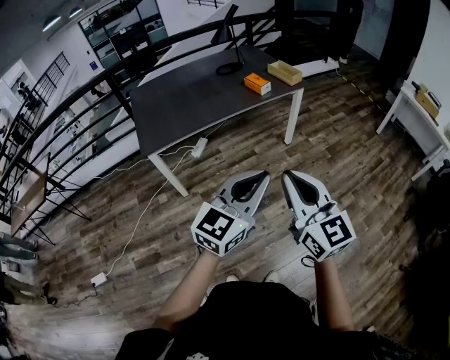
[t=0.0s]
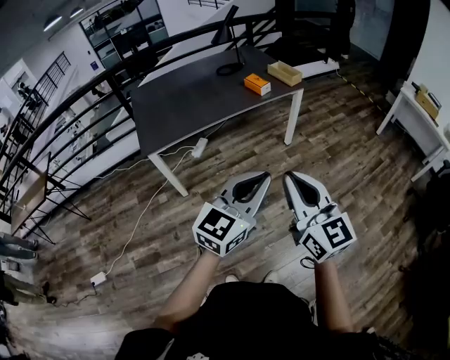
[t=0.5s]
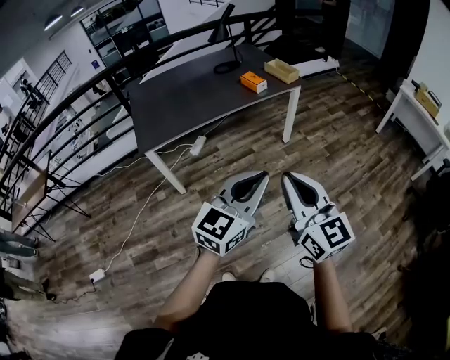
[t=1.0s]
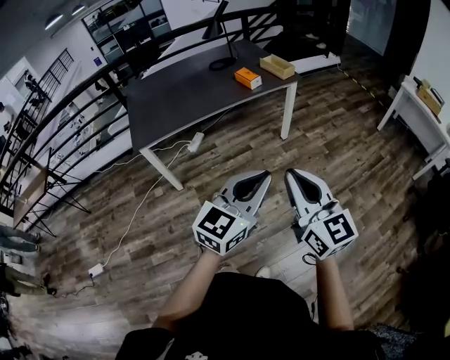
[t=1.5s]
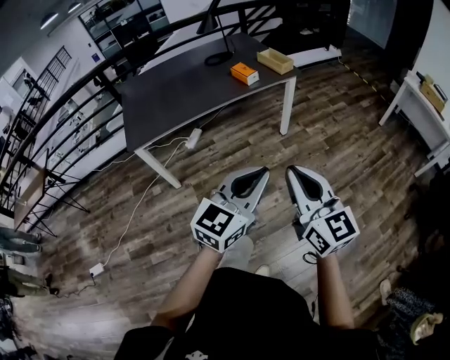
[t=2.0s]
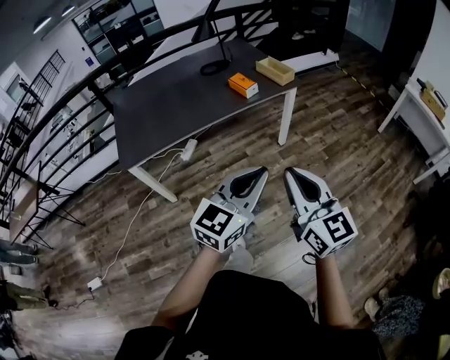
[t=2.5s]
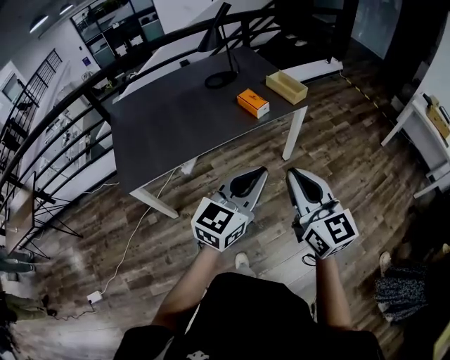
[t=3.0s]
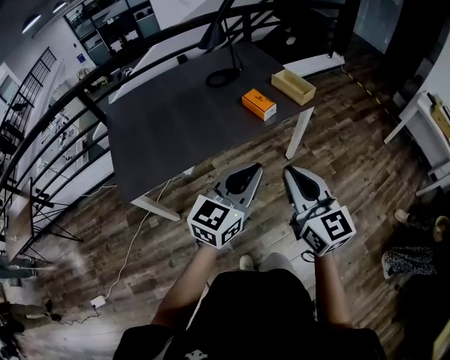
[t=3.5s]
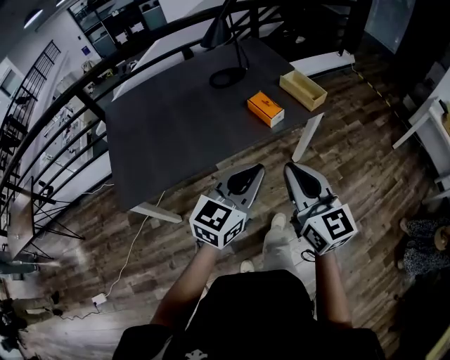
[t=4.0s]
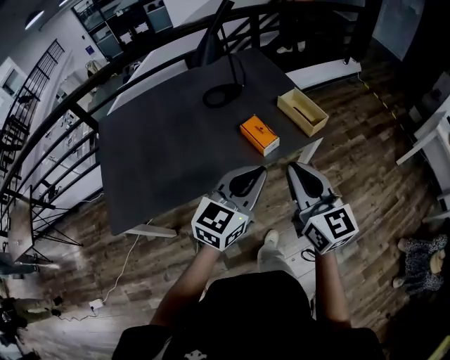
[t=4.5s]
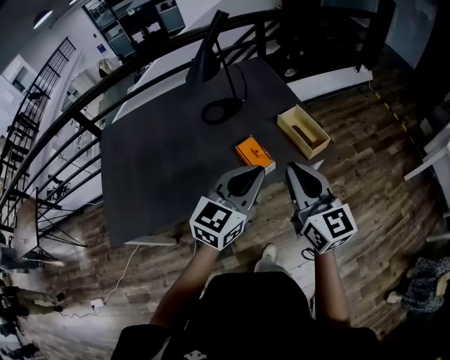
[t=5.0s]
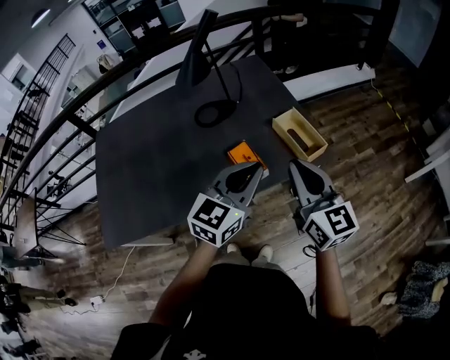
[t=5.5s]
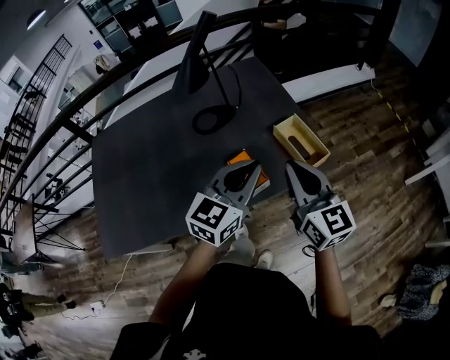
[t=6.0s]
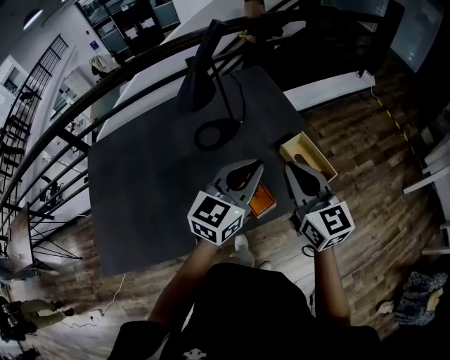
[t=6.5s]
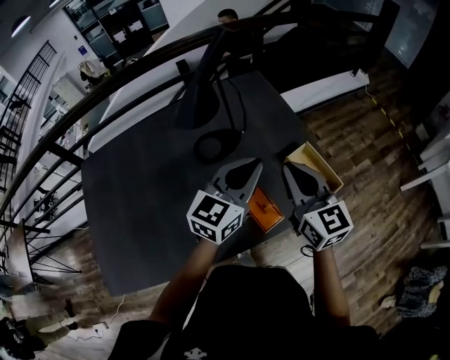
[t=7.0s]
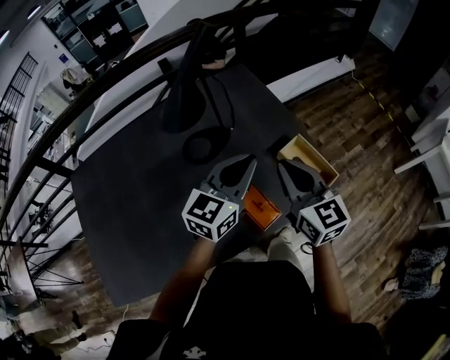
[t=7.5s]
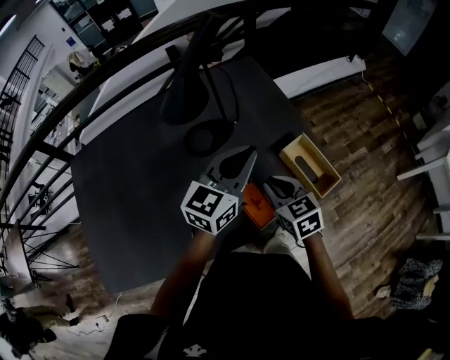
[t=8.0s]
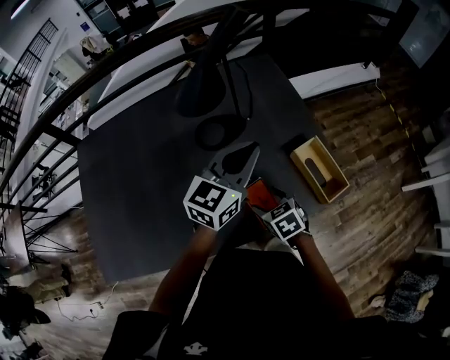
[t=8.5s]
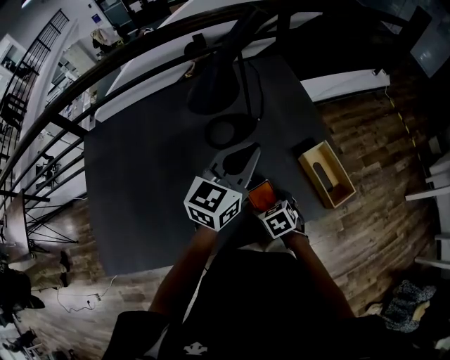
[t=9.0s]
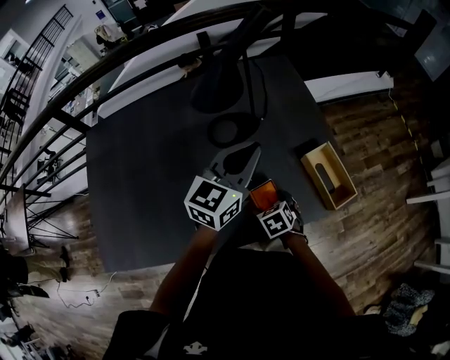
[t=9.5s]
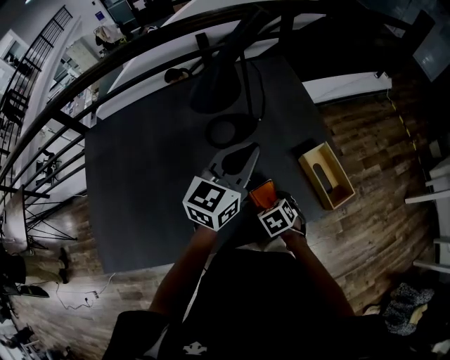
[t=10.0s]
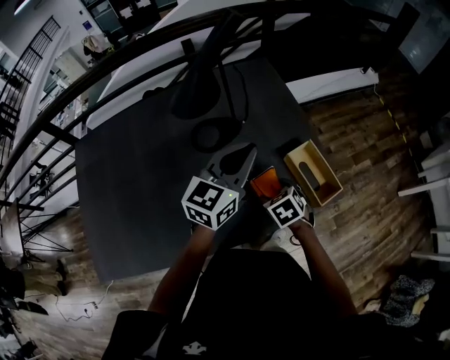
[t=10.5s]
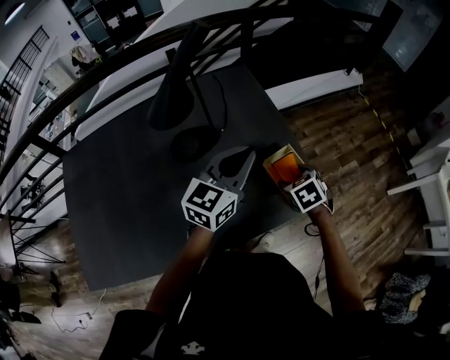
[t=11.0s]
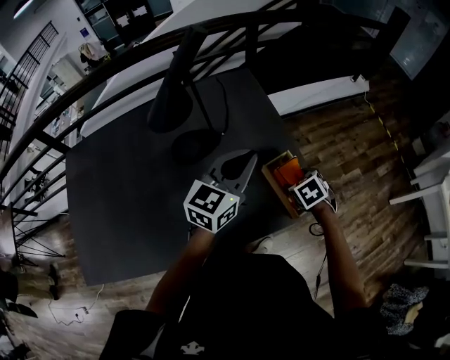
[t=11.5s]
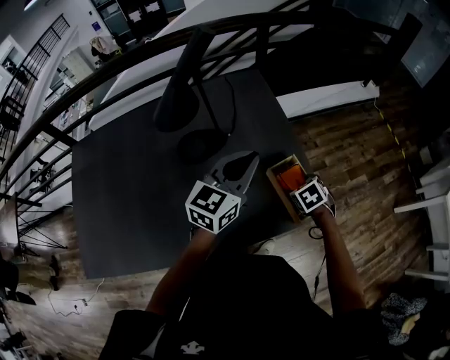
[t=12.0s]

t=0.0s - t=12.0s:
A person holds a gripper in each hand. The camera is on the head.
t=0.0s - t=2.0s: The two grippers go about 10 cm to the right.
t=2.0s - t=4.0s: The left gripper travels forward and to the left by roughly 40 cm, while the right gripper is displaced forward by approximately 35 cm.
t=4.0s - t=6.0s: Both grippers travel together forward, some 30 cm.
t=6.0s - t=8.0s: The right gripper shifts about 20 cm downward, forward and to the left, and angles its fingers downward, by roughly 30 degrees; the left gripper is displaced forward by about 15 cm.
t=8.0s - t=10.0s: The left gripper is displaced to the left by about 5 cm. Meanwhile the right gripper shifts approximately 15 cm downward, angles its fingers downward, by roughly 30 degrees, and opens.
t=10.0s - t=12.0s: The left gripper shifts roughly 10 cm to the right, while the right gripper goes roughly 25 cm to the right and forward.

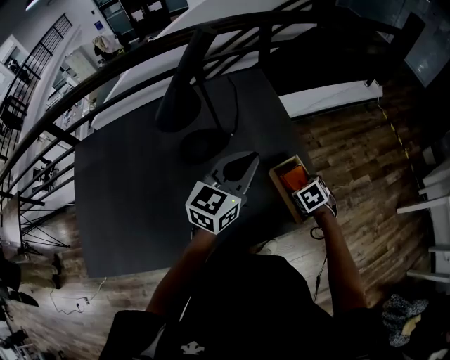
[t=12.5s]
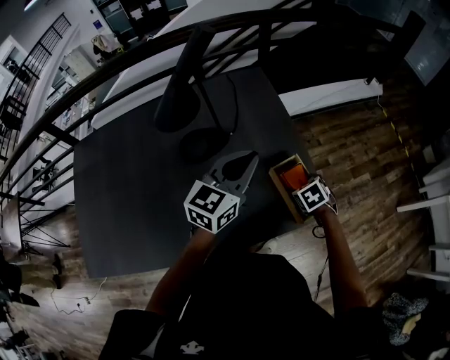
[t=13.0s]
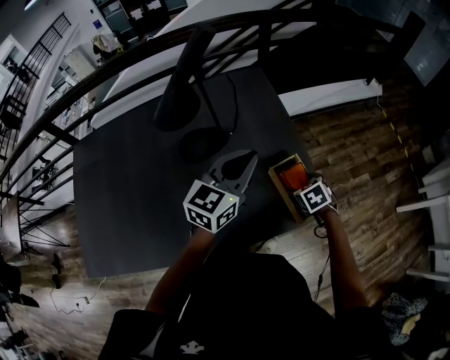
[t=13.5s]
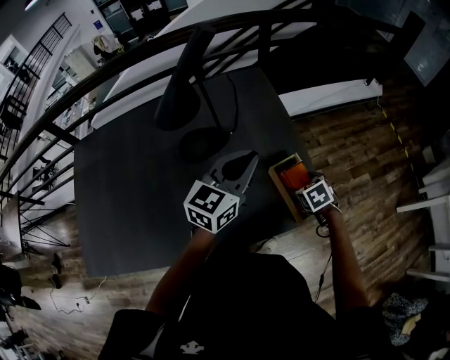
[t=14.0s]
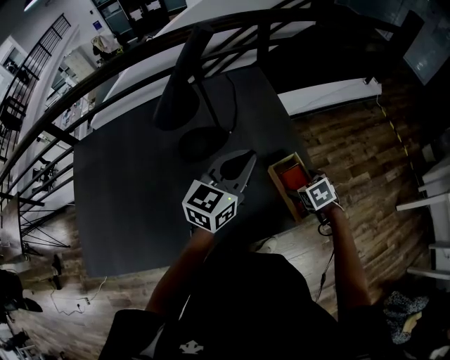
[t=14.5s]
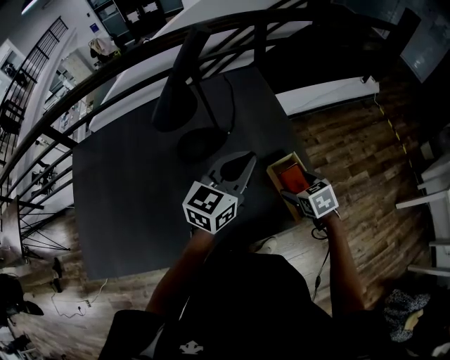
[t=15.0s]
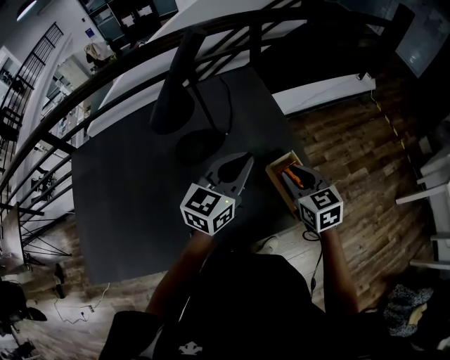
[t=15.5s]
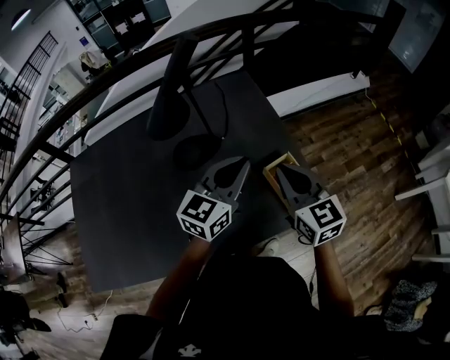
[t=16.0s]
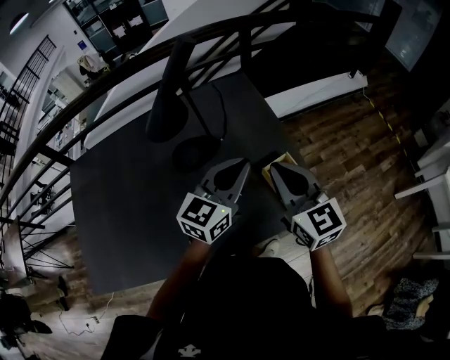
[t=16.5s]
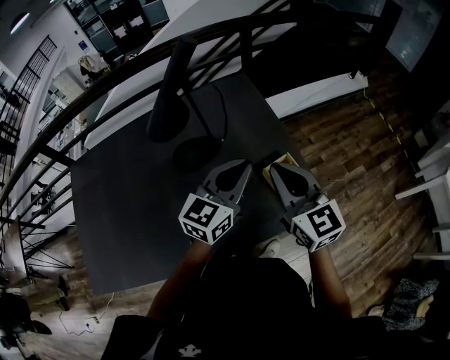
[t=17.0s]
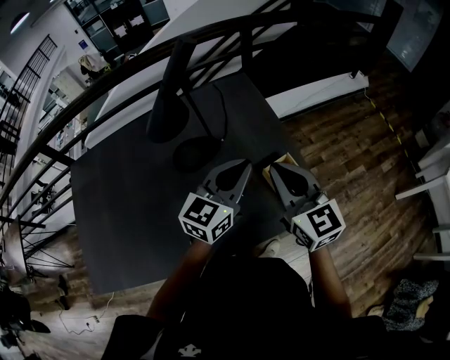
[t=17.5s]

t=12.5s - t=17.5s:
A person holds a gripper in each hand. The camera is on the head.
t=12.5s - t=15.0s: The right gripper shifts about 5 cm upward.
t=15.0s - t=17.5s: The right gripper shifts about 20 cm upward, angles its fingers upward, by some 50 degrees, and closes.

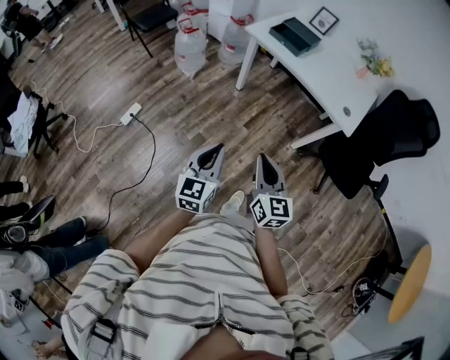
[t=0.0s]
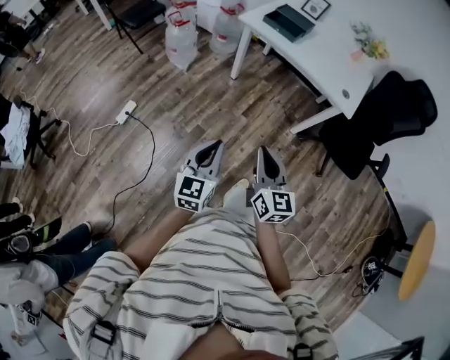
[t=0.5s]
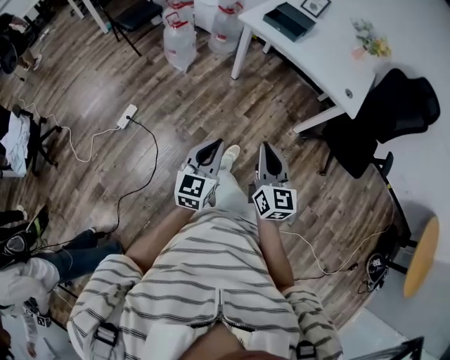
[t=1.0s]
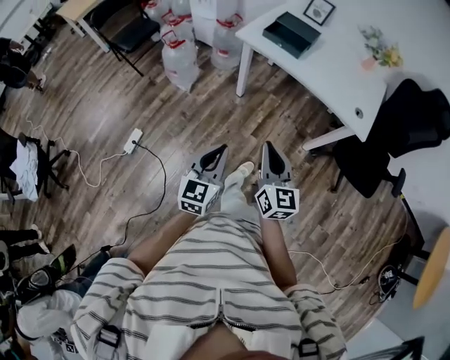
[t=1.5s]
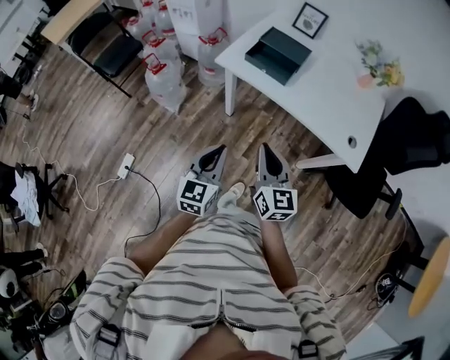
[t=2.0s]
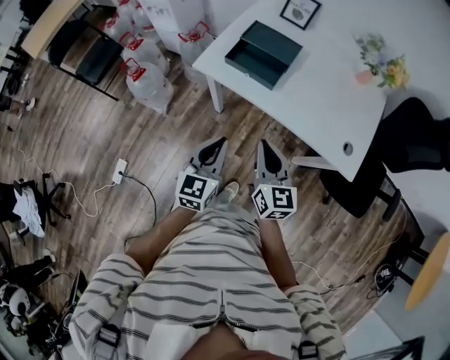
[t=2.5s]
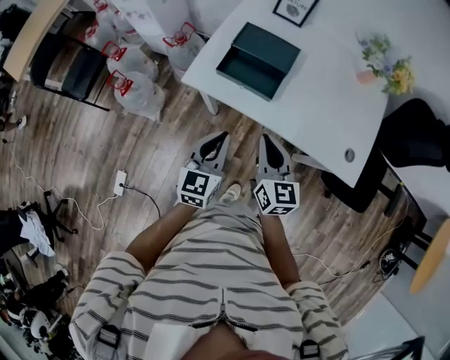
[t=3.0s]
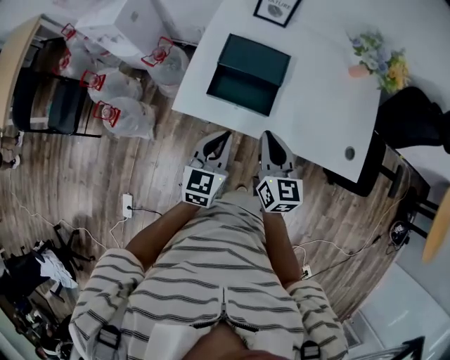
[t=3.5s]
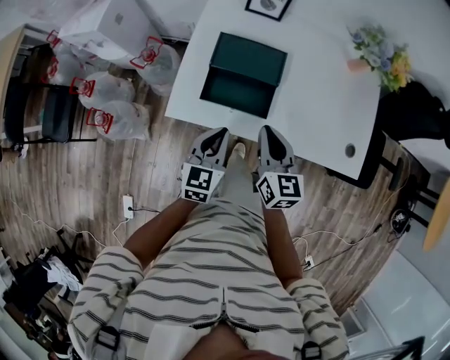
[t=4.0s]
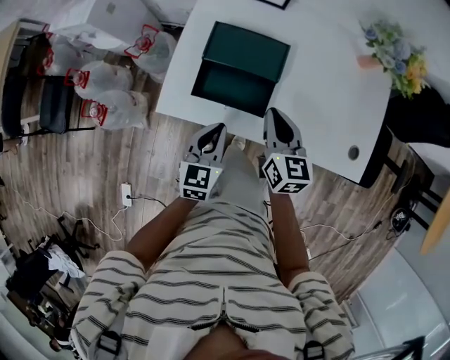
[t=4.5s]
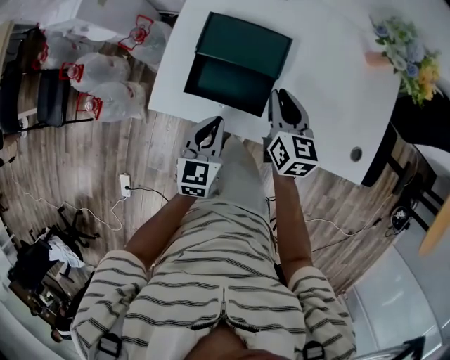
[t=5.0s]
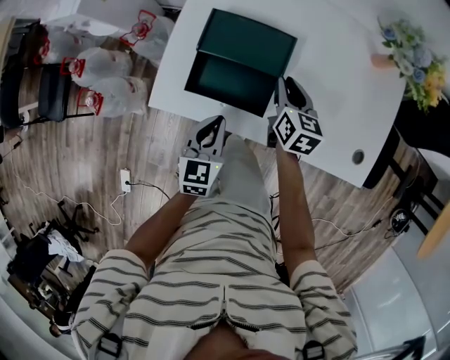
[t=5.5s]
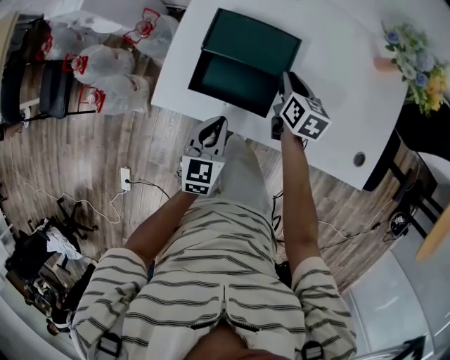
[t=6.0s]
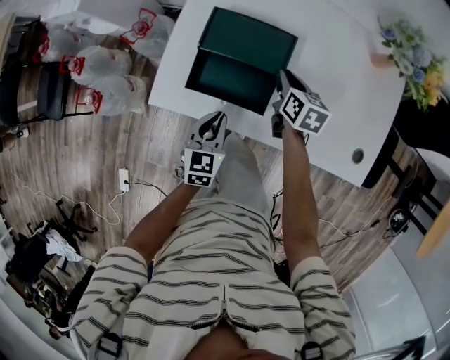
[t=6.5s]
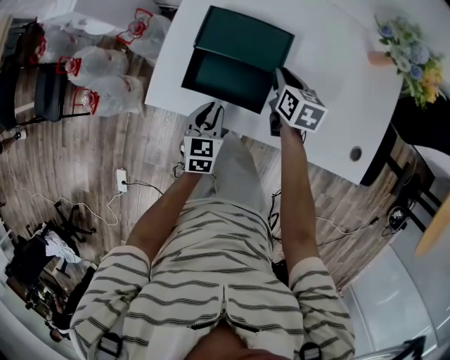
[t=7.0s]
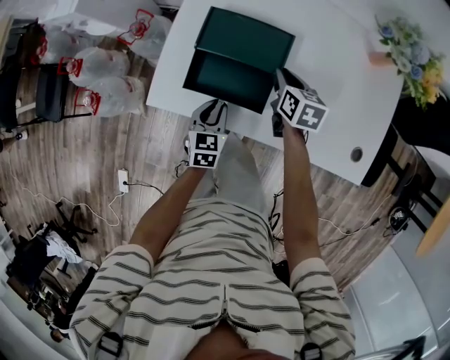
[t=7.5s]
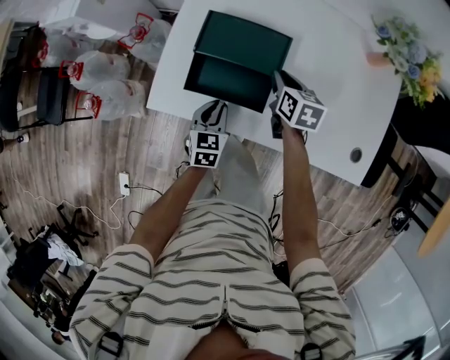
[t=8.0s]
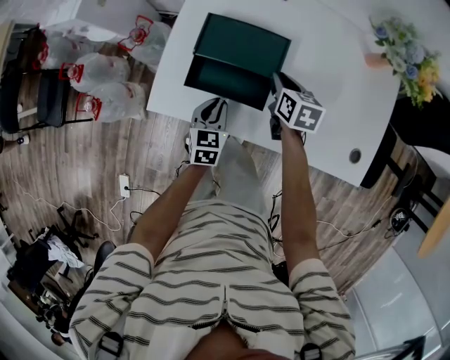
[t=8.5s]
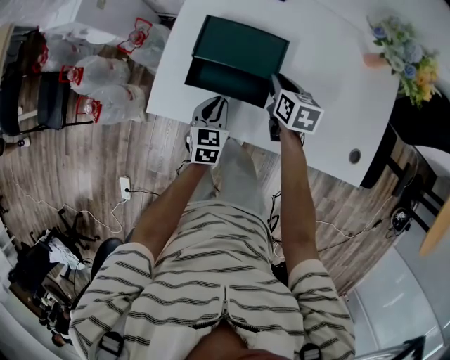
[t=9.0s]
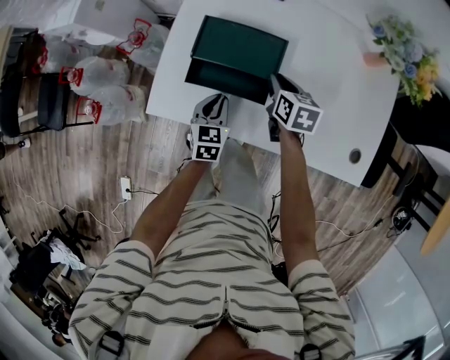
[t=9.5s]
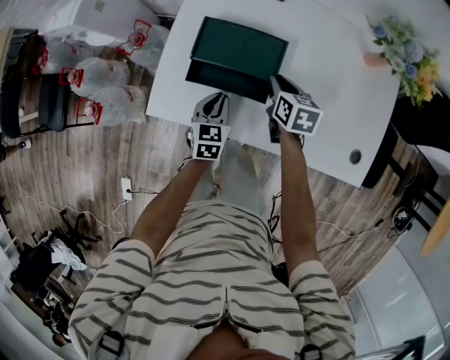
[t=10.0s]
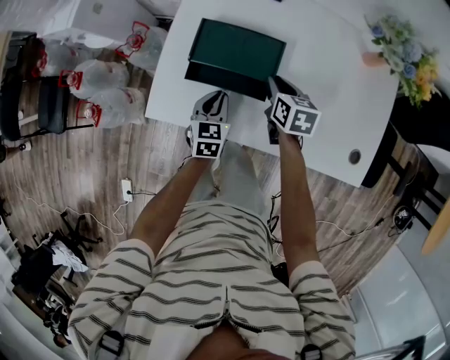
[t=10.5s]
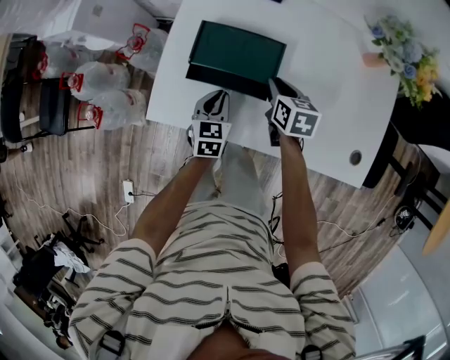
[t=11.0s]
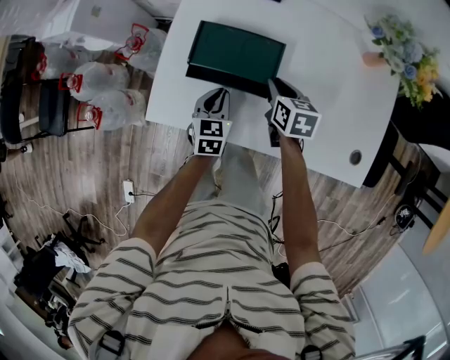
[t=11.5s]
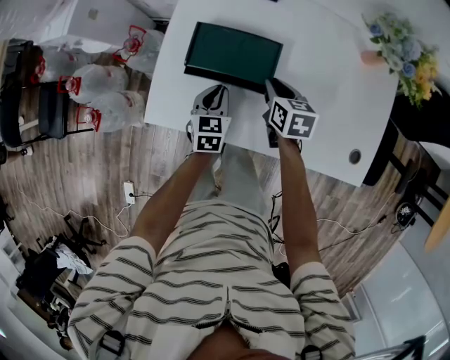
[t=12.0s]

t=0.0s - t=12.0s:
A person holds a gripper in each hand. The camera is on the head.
t=0.0s - t=2.0s: The grippers both shift forward by about 40 cm.
t=2.0s - t=4.0s: The two grippers go about 40 cm forward. The left gripper changes its angle by some 20 degrees. Meanwhile the right gripper changes its angle by roughly 20 degrees.
t=4.0s - t=6.0s: The left gripper travels downward by approximately 10 cm; the right gripper heads forward and downward, covering about 25 cm, and turns by some 20 degrees.
t=6.0s - t=8.0s: The left gripper is displaced downward by about 5 cm.
t=8.0s - t=10.0s: There are only small adjustments of the grippers.
t=10.0s - t=12.0s: The grippers move only a little.
